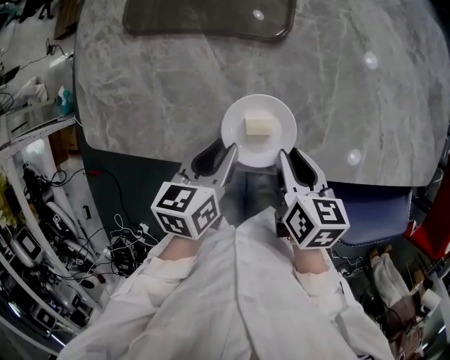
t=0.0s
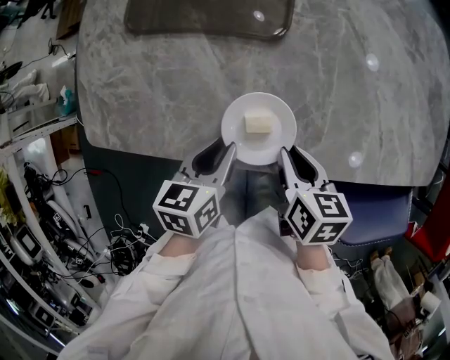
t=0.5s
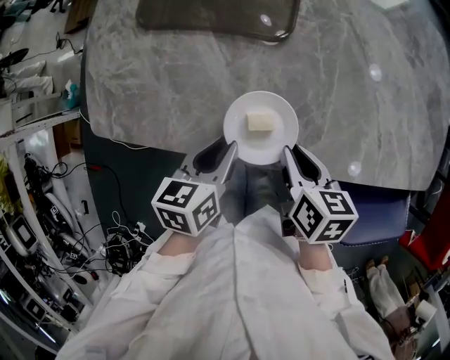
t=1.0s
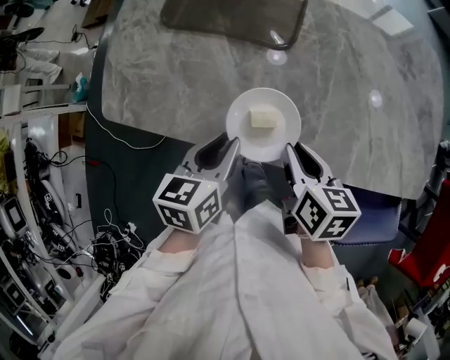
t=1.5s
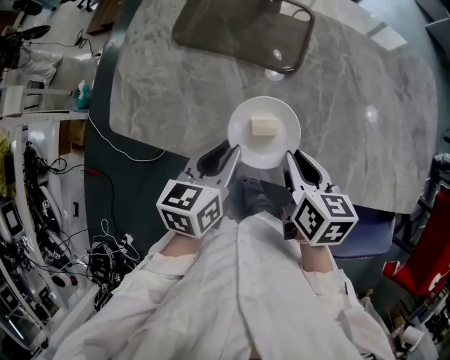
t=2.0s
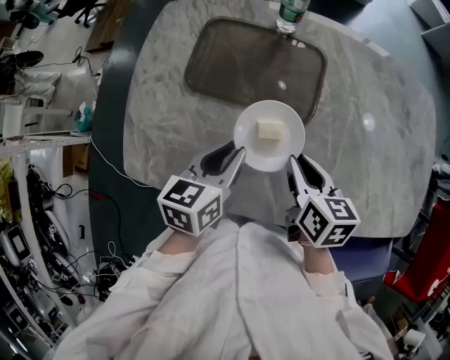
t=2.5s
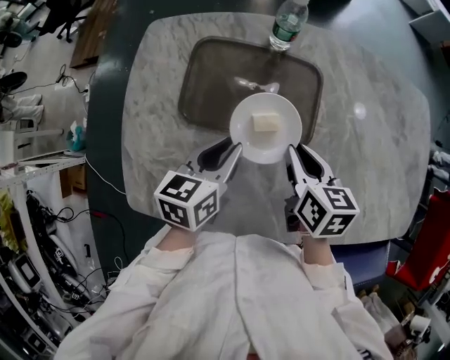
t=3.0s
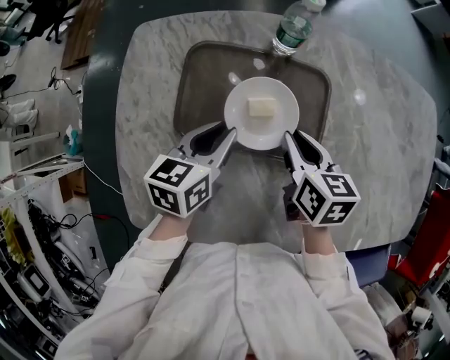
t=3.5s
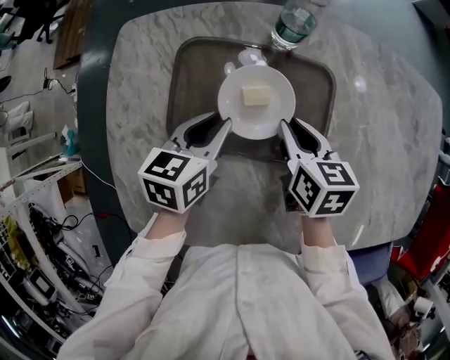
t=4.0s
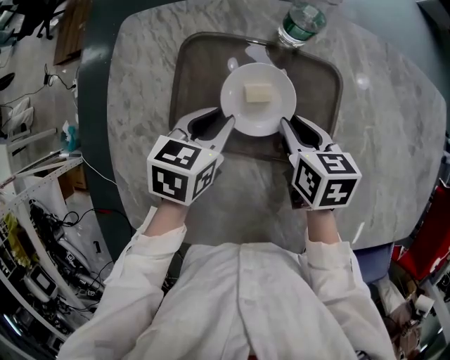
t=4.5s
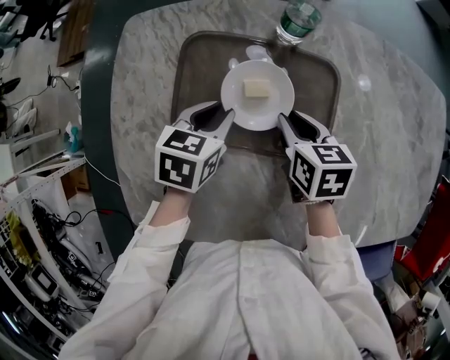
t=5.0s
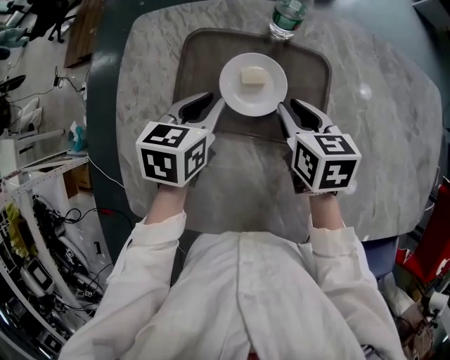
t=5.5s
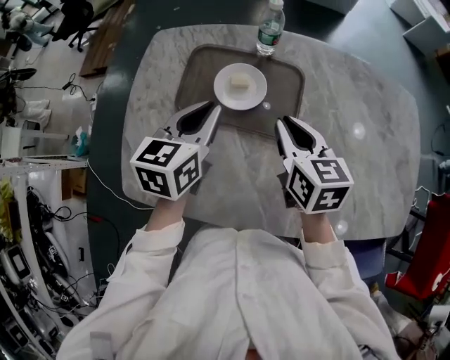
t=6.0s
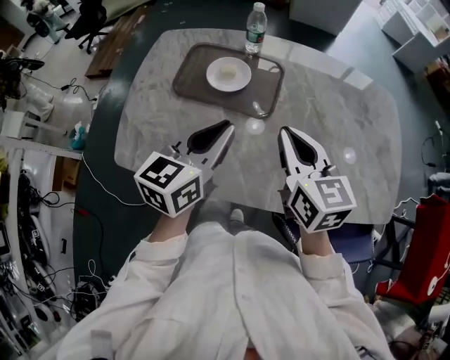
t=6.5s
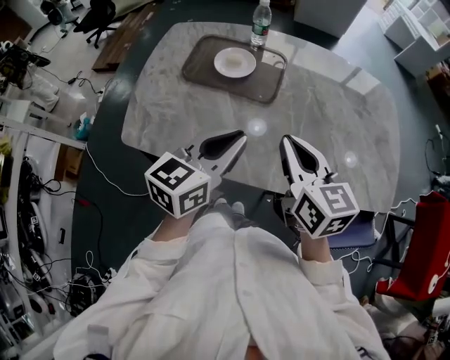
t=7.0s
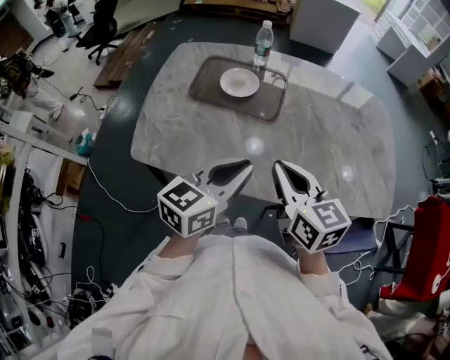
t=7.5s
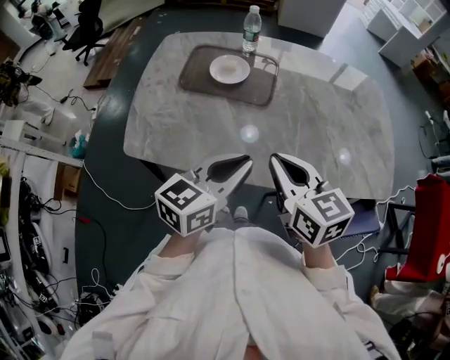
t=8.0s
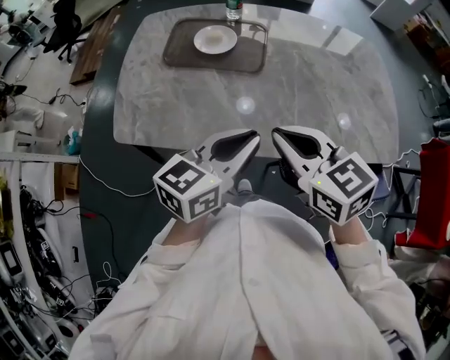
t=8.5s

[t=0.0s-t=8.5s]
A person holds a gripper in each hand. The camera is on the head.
t=0.0s to t=2.0s: Both grippers travel together upward, roughly 5 cm.
t=2.0s to t=4.0s: Both grippers move forward, approximately 30 cm.
t=4.0s to t=6.5s: The grippers both shift backward, upward and to the right by approximately 35 cm. The right gripper swivels about 30 degrees. The left gripper swivels approximately 30 degrees.
t=6.5s to t=8.5s: The right gripper travels backward by roughly 15 cm. The left gripper goes some 15 cm backward and to the right.

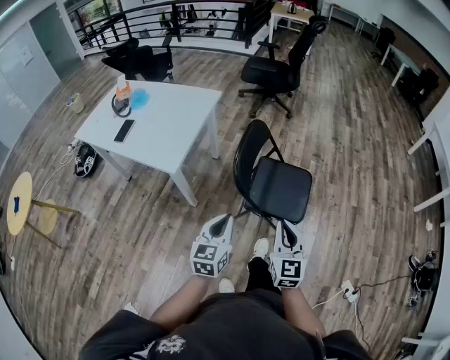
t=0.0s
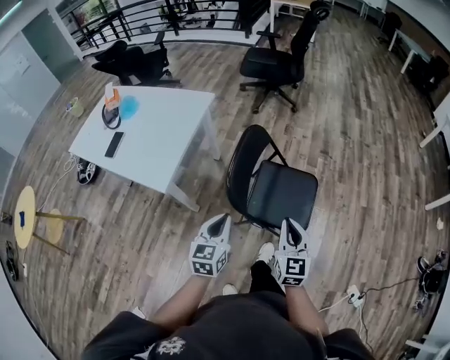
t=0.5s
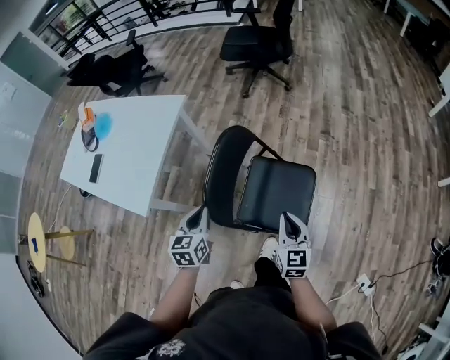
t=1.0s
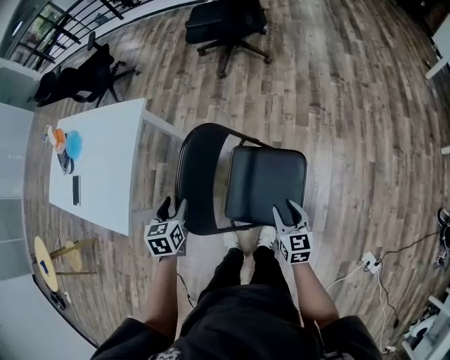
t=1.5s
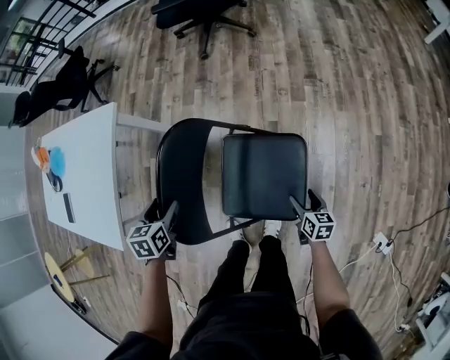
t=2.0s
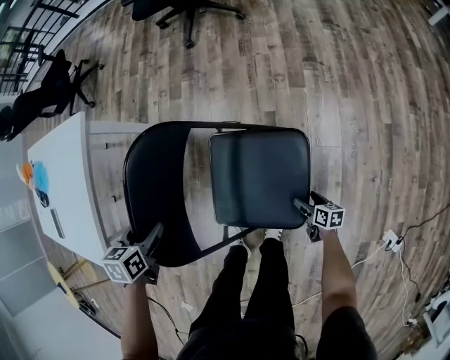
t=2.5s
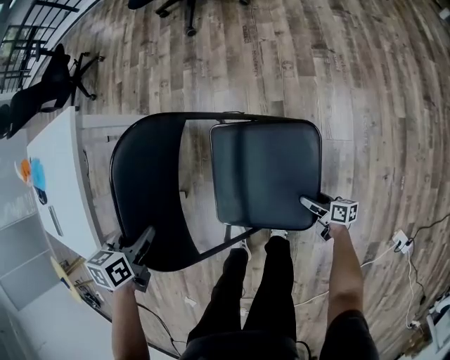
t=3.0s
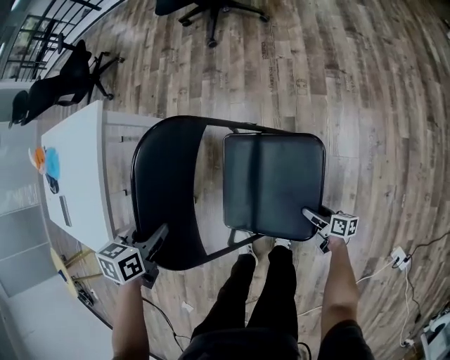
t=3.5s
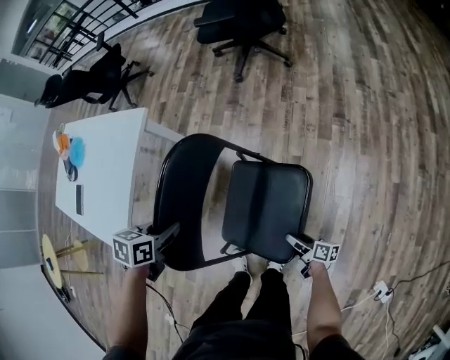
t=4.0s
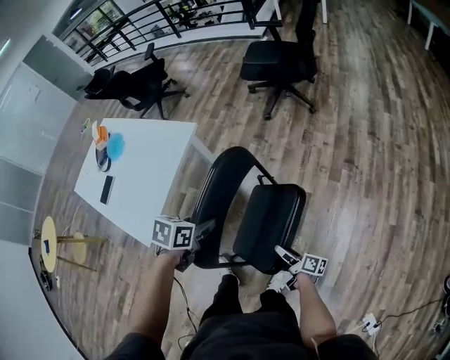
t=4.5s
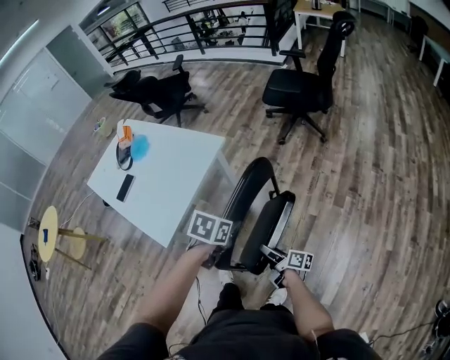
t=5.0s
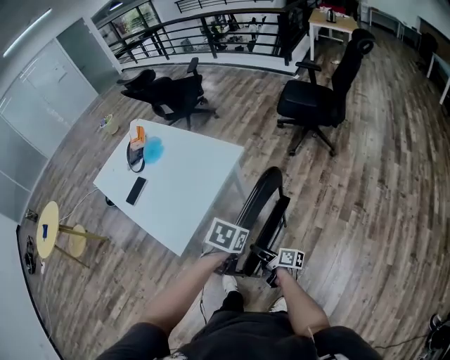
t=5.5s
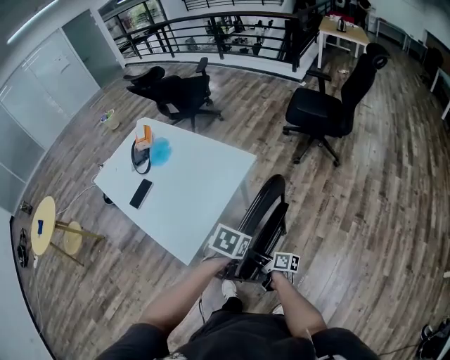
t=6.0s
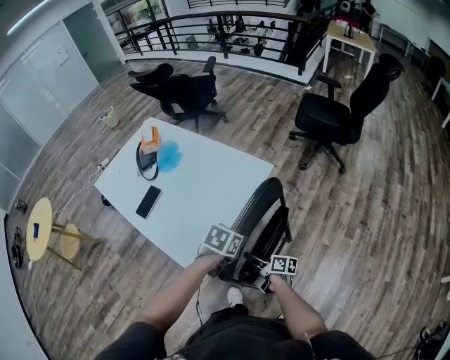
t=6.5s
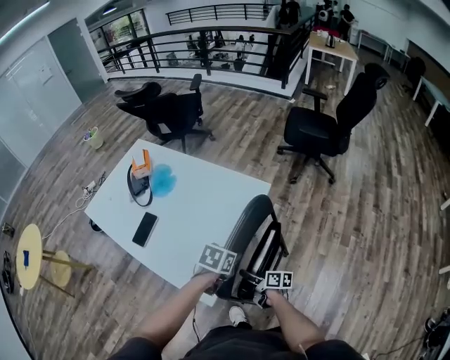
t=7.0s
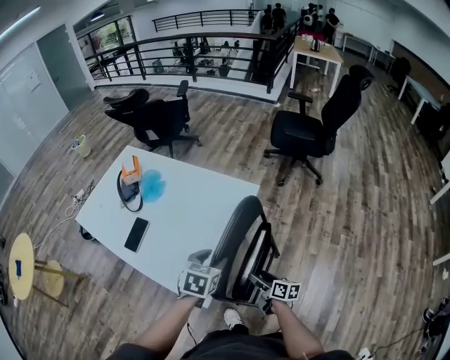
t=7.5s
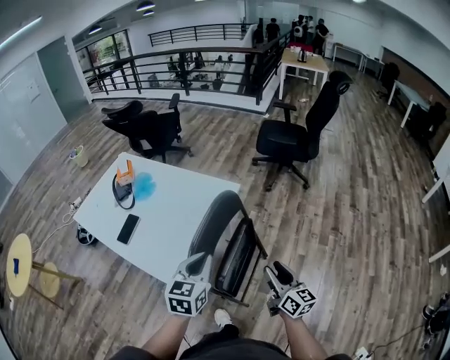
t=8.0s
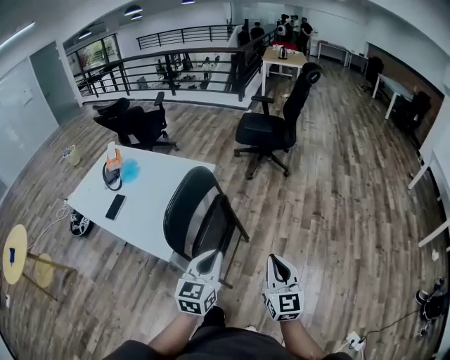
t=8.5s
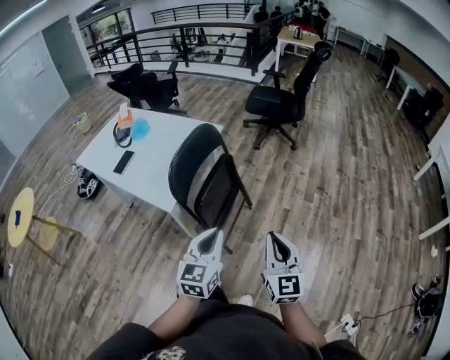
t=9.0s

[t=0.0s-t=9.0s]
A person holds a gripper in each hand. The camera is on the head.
t=0.0s to t=2.0s: Both grippers are carried forward and to the right, roughly 40 cm. The right gripper goes roughly 40 cm downward, angles its fingers downward, by about 30 degrees, and opens up. Meanwhile the left gripper heads downward, covering about 20 cm, points its fingers about 40 degrees further downward, and opens up.
t=2.0s to t=4.5s: The left gripper travels upward by roughly 10 cm, and closes, while the right gripper heads to the left, covering some 20 cm, travels downward and back again, some 20 cm each way, and points its fingers about 30 degrees further upward.
t=4.5s to t=7.0s: The right gripper heads to the left and forward, covering some 50 cm, and turns by approximately 20 degrees; the left gripper travels to the left and forward by roughly 30 cm.
t=7.0s to t=9.0s: The two grippers travel together, backward and to the right, roughly 50 cm. The right gripper goes roughly 30 cm upward, rotates about 80 degrees, and closes; the left gripper angles its fingers upward, by about 50 degrees, and opens, then closes once more.

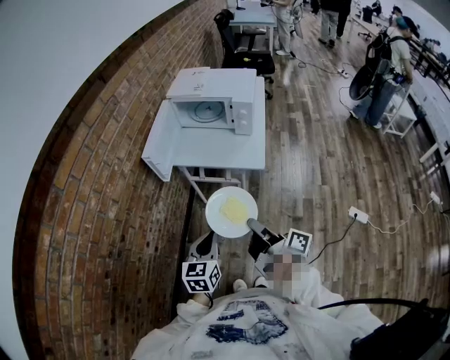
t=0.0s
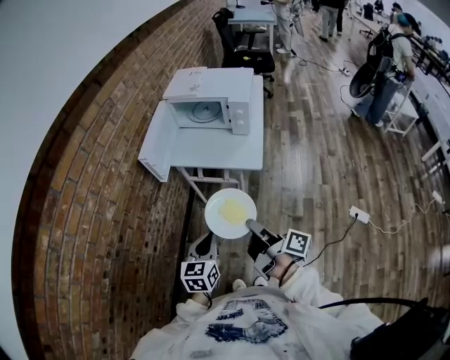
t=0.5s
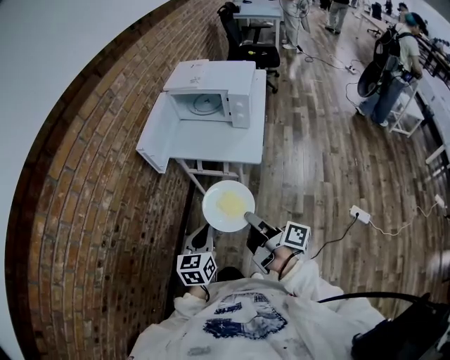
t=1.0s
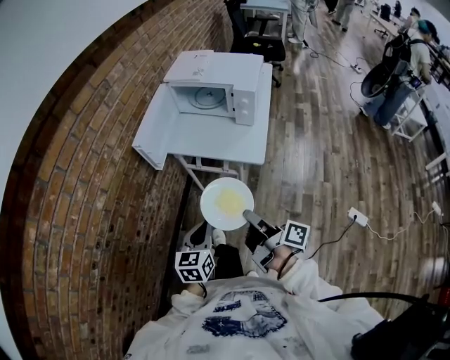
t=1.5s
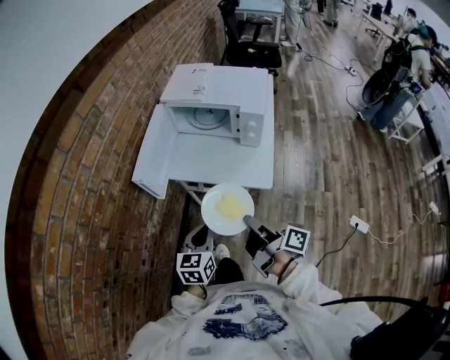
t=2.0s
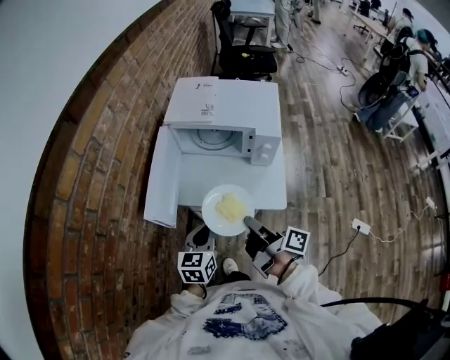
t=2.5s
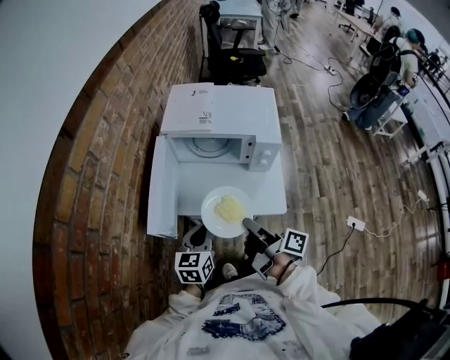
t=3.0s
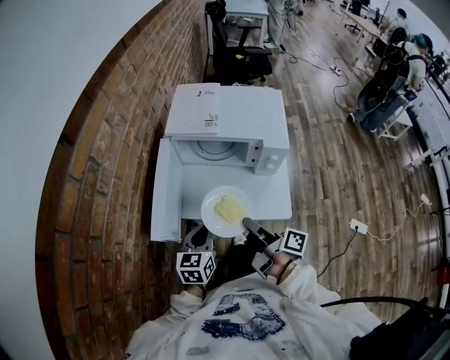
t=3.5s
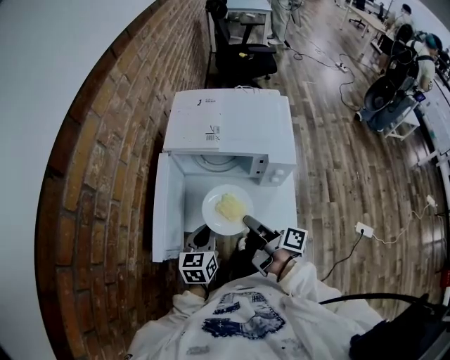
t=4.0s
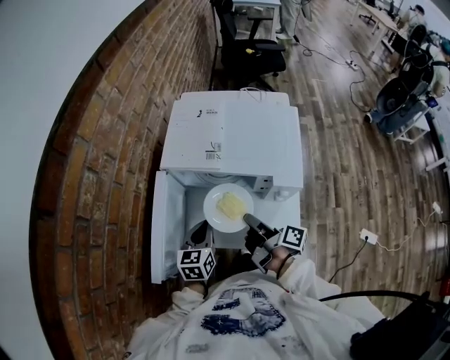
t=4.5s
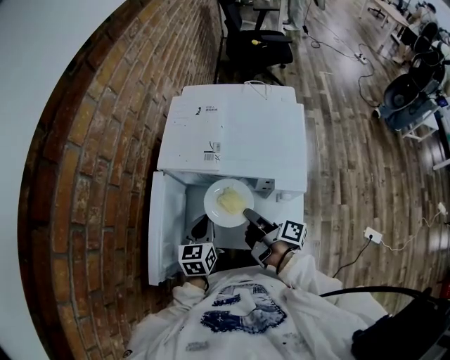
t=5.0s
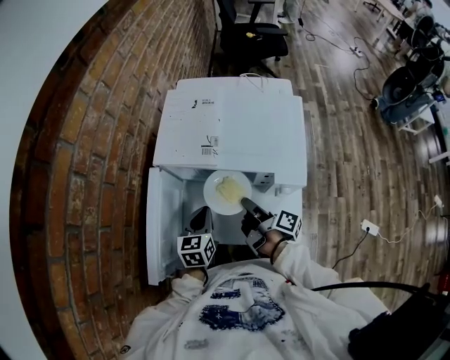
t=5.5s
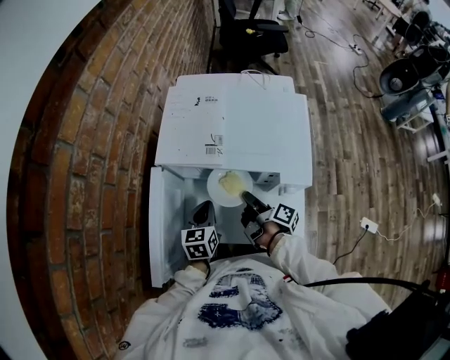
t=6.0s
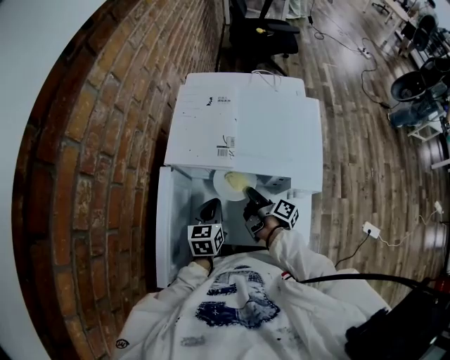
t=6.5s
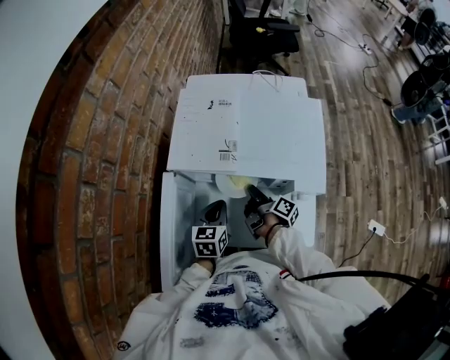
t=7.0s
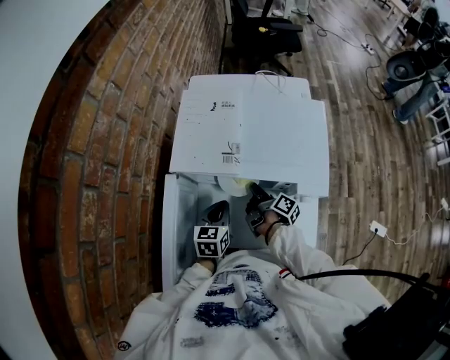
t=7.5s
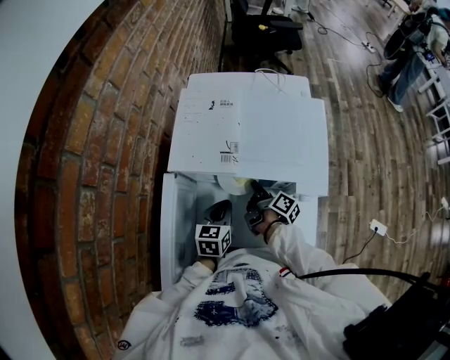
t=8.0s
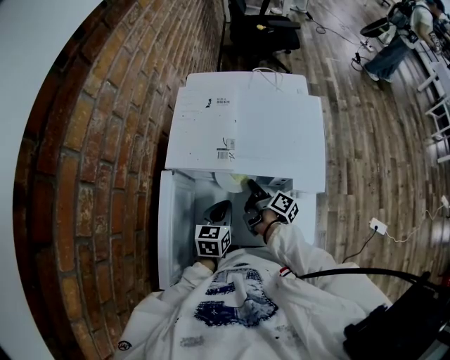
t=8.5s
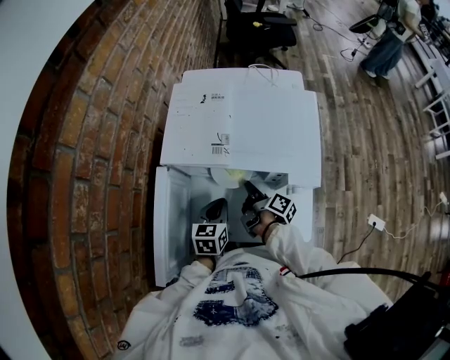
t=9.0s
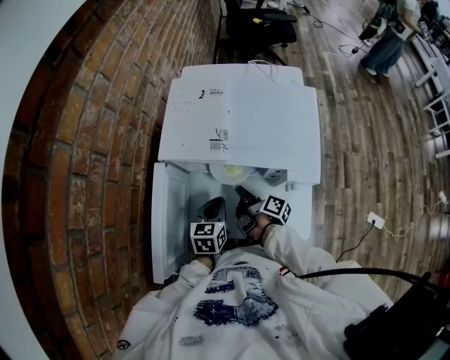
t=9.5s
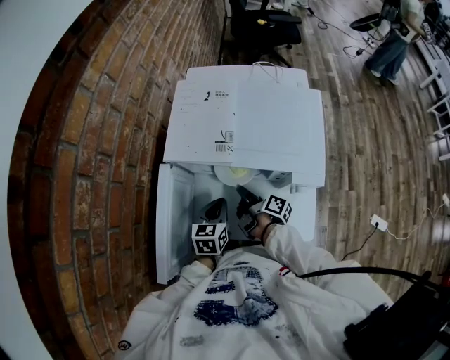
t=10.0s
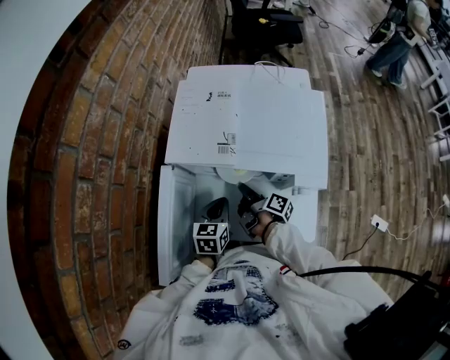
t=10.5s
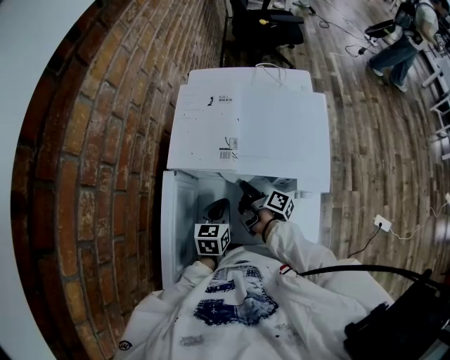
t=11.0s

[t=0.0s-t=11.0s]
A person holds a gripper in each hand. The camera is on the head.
t=0.0s to t=2.0s: The left gripper moves about 20 cm.
t=2.0s to t=3.5s: The left gripper shifts by about 20 cm.
t=3.5s to t=5.5s: The left gripper changes place by approximately 20 cm.
t=5.5s to t=7.5s: The left gripper ends up roughly 5 cm from where it was.
